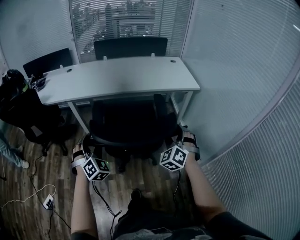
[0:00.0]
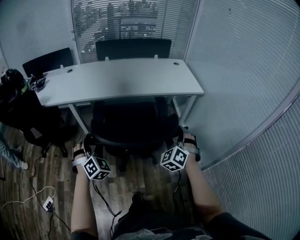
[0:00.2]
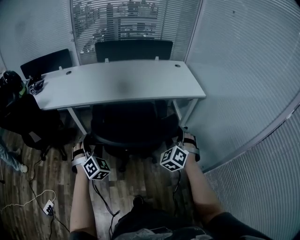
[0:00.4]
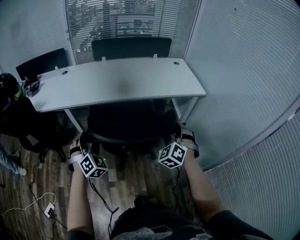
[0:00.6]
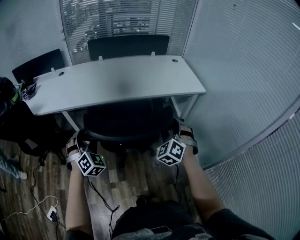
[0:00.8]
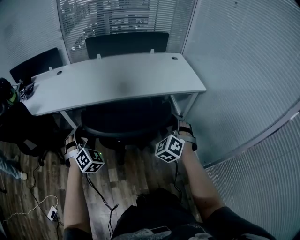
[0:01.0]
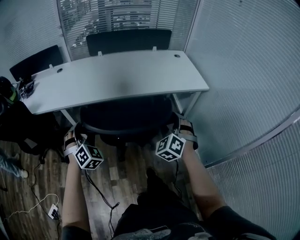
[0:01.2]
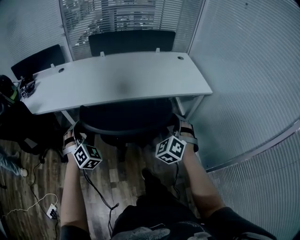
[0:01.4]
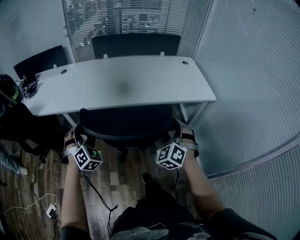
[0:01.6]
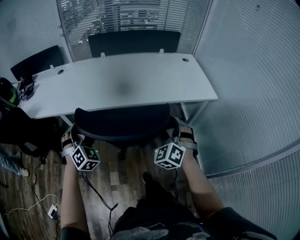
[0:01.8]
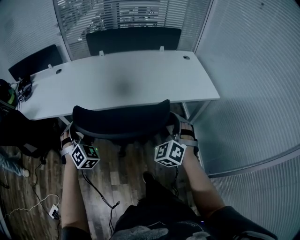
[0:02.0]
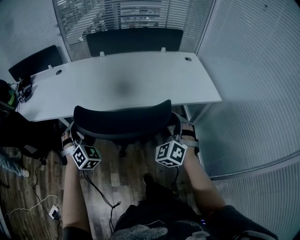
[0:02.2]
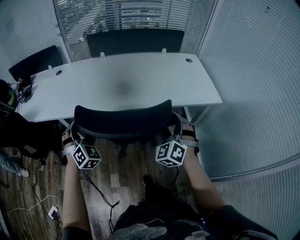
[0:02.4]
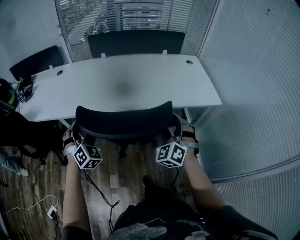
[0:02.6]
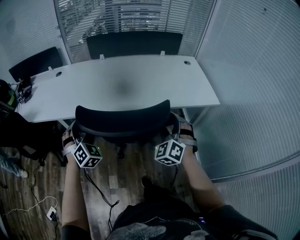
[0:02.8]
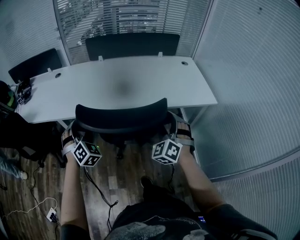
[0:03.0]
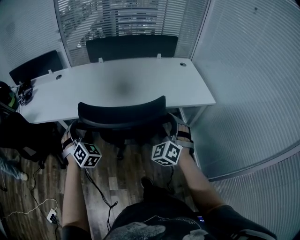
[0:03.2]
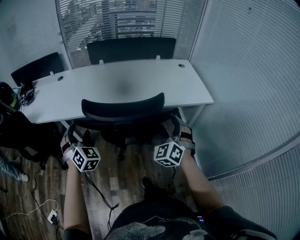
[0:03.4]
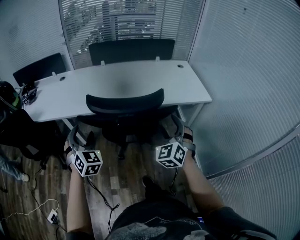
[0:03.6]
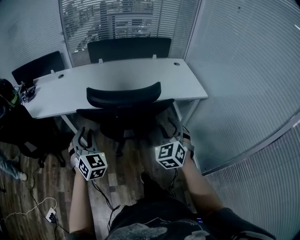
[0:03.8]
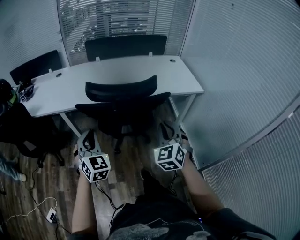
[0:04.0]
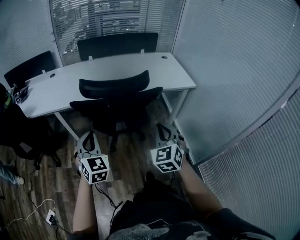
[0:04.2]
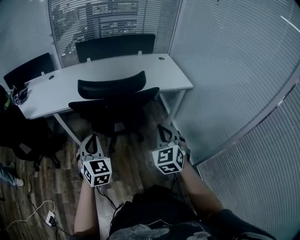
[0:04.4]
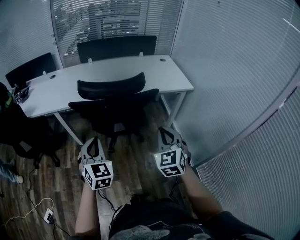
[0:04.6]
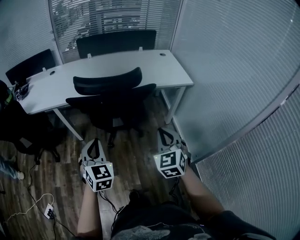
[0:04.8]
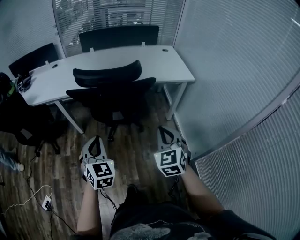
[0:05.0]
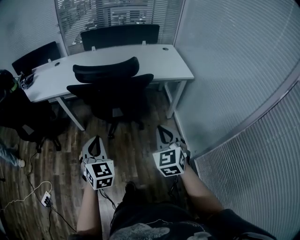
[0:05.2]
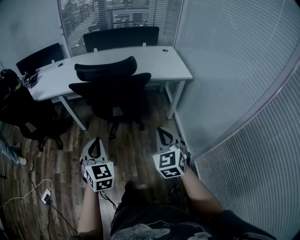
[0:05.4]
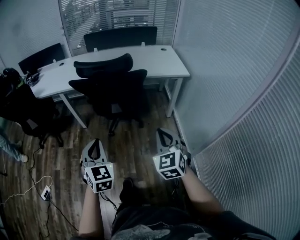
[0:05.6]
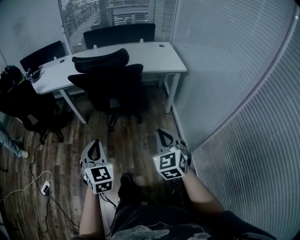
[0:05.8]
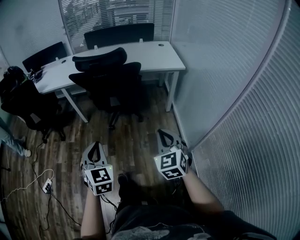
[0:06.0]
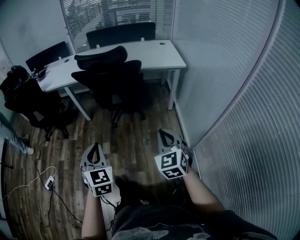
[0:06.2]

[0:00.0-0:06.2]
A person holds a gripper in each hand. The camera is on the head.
0.0 to 1.6 s: The two grippers go some 25 cm forward.
1.6 to 3.2 s: The two grippers go approximately 5 cm forward.
3.2 to 4.6 s: The right gripper goes about 25 cm backward, turns by some 30 degrees, and closes its fingers. Meanwhile the left gripper shifts approximately 25 cm backward and to the right, rotates some 30 degrees, and closes.
4.6 to 6.2 s: The left gripper is displaced backward by approximately 30 cm. Meanwhile the right gripper is displaced backward and to the right by about 30 cm.

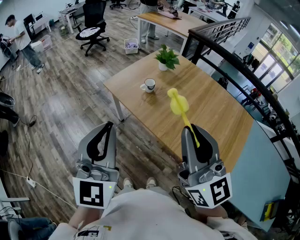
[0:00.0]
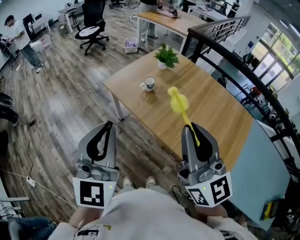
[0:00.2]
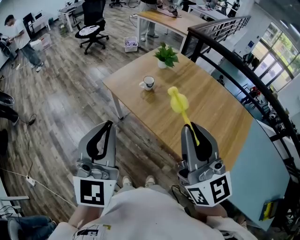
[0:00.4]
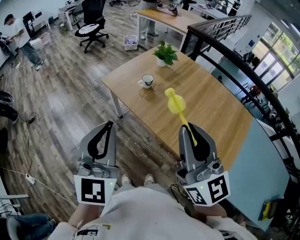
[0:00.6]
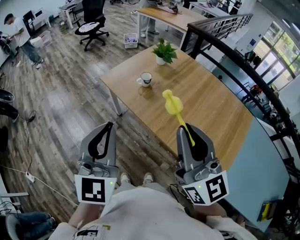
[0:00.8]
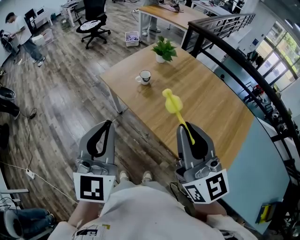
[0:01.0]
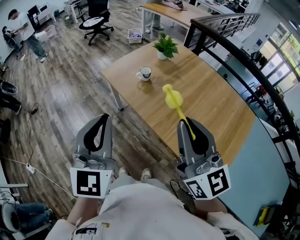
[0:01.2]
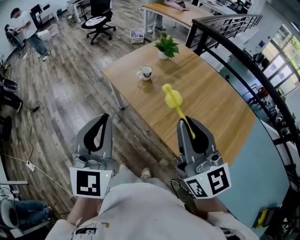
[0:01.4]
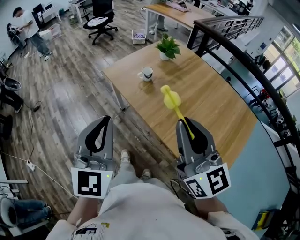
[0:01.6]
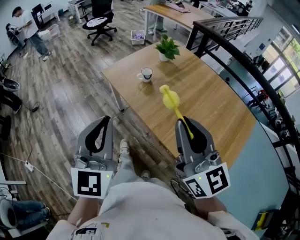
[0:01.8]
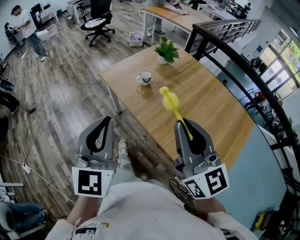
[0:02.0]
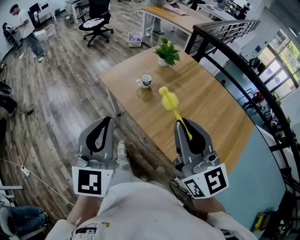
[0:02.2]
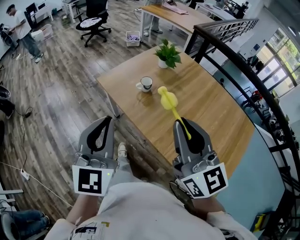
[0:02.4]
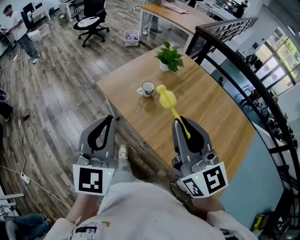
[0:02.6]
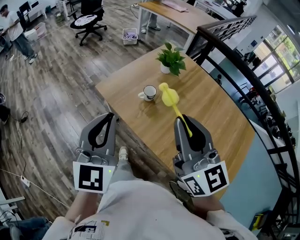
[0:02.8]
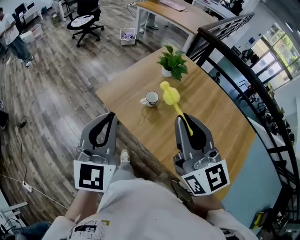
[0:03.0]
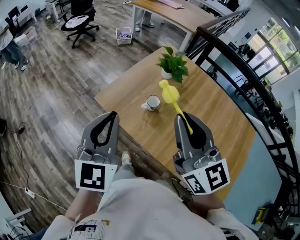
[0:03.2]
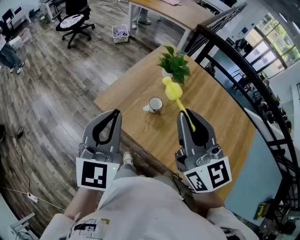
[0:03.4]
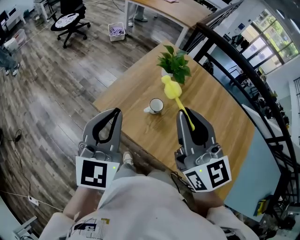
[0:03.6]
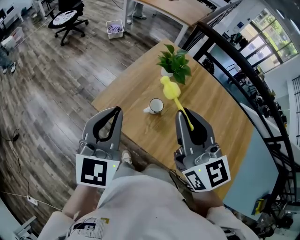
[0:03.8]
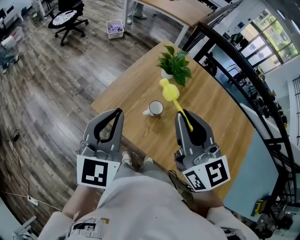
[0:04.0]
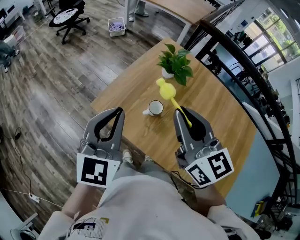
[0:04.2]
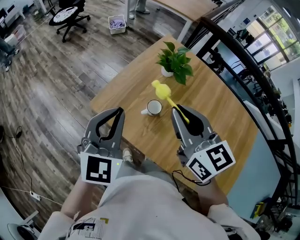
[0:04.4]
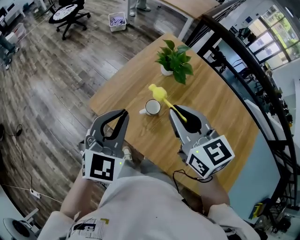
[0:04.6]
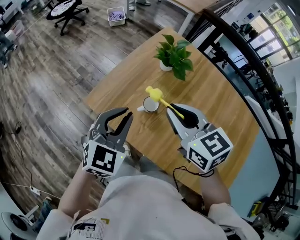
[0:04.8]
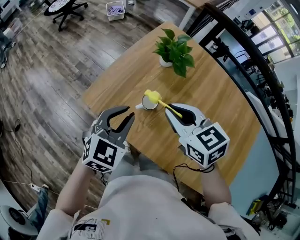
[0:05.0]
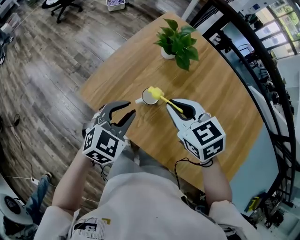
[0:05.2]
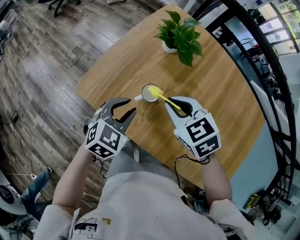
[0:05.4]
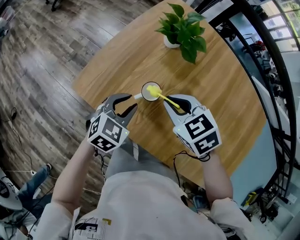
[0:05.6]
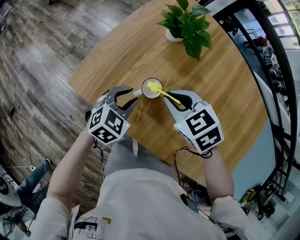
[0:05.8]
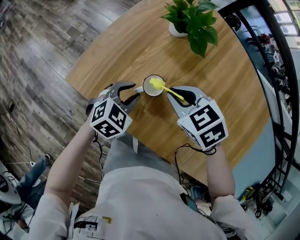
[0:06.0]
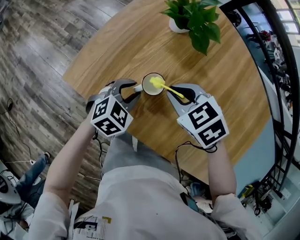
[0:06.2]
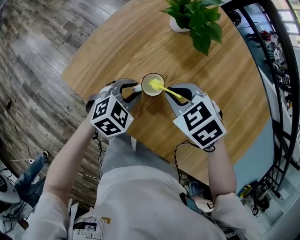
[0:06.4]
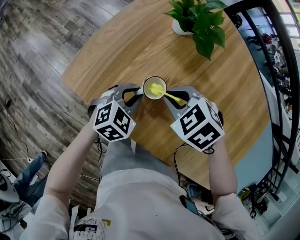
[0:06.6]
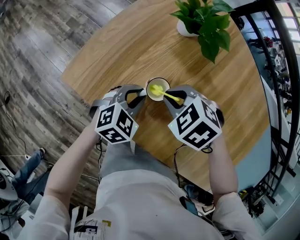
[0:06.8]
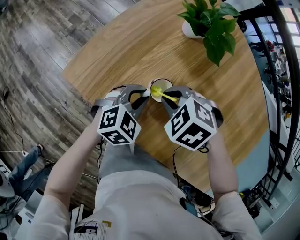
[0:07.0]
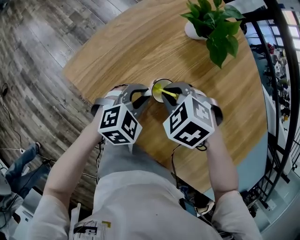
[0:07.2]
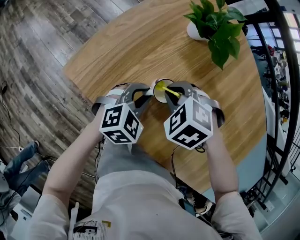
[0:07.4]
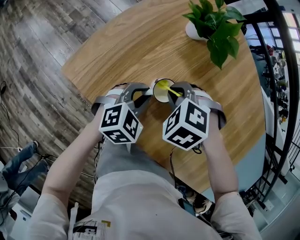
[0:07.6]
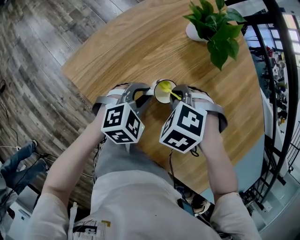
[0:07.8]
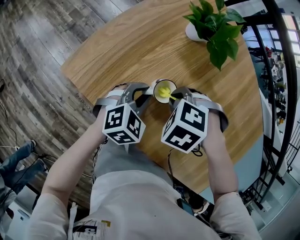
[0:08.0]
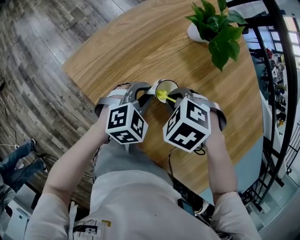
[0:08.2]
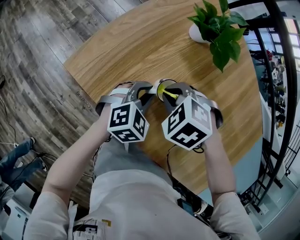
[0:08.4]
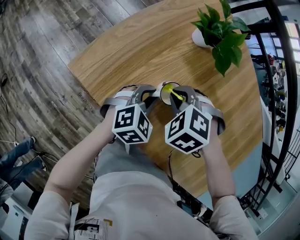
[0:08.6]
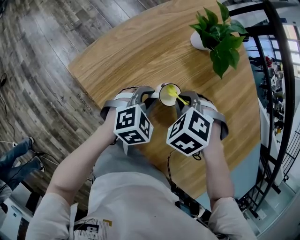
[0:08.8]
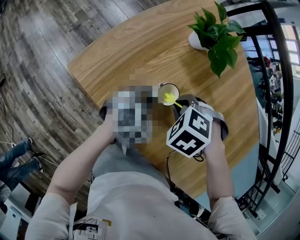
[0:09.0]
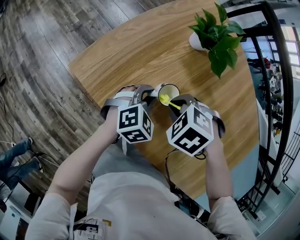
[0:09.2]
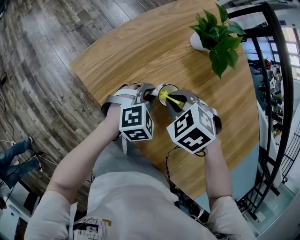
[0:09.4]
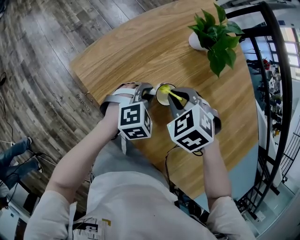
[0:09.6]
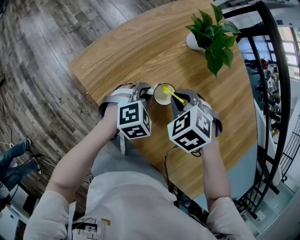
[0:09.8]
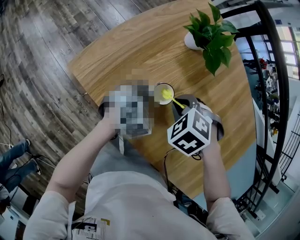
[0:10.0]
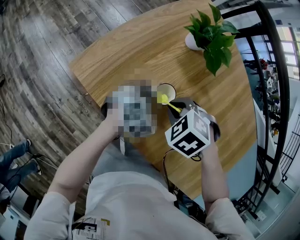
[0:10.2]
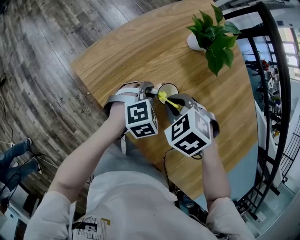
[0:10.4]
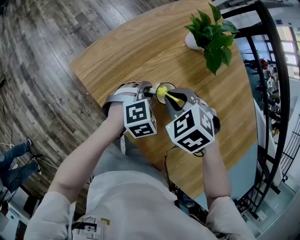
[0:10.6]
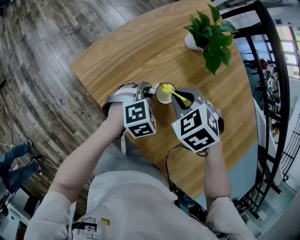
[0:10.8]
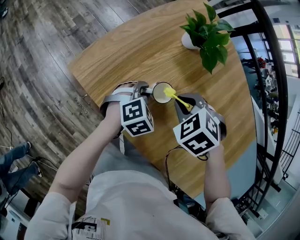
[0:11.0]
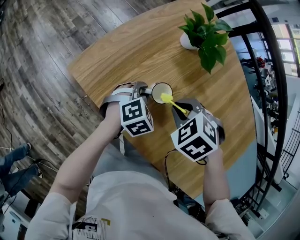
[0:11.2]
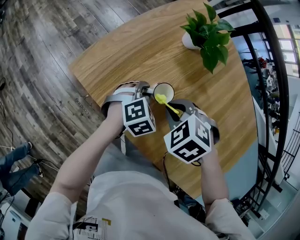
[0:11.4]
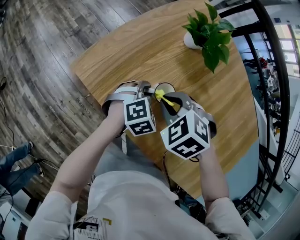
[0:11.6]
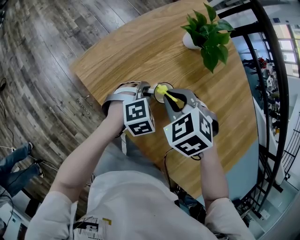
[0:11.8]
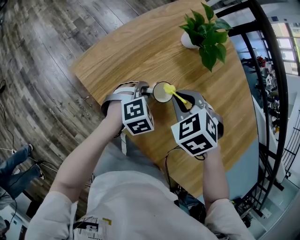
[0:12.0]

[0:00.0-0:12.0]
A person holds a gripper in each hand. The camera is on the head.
0.0 to 1.6 s: The right gripper shifts about 10 cm to the right and downward; the left gripper goes approximately 5 cm to the right.
1.6 to 3.0 s: The two grippers go roughly 30 cm forward.
3.0 to 4.4 s: Both grippers move forward, some 20 cm.
4.4 to 6.0 s: Both grippers move downward, some 35 cm. The left gripper tips its fingers downward by some 40 degrees, and opens its fingers. The right gripper angles its fingers downward, by about 40 degrees.
6.0 to 7.6 s: The right gripper goes some 10 cm downward, and changes its angle by some 40 degrees.
7.6 to 10.4 s: The grippers make only small movements.
10.4 to 12.0 s: The grippers move only a little.

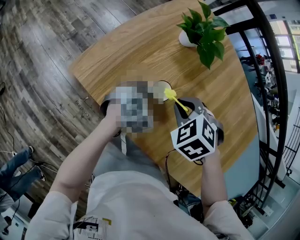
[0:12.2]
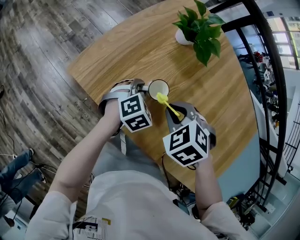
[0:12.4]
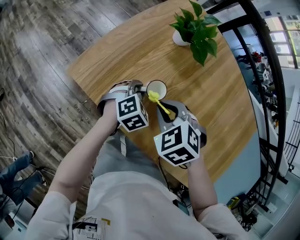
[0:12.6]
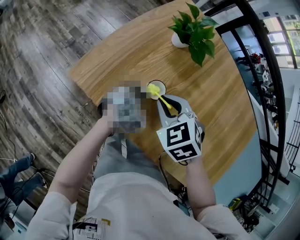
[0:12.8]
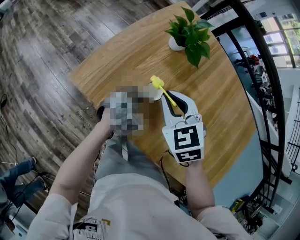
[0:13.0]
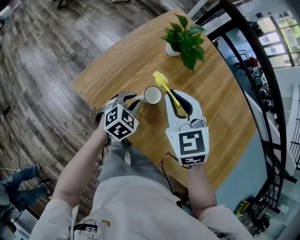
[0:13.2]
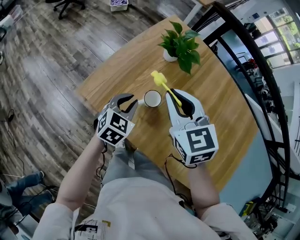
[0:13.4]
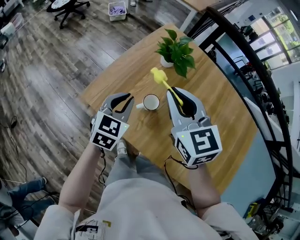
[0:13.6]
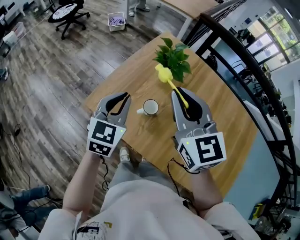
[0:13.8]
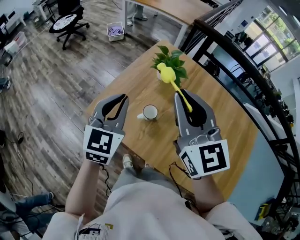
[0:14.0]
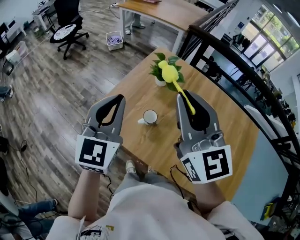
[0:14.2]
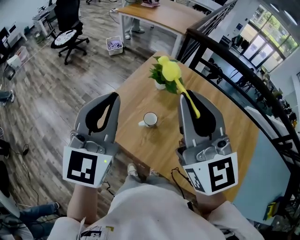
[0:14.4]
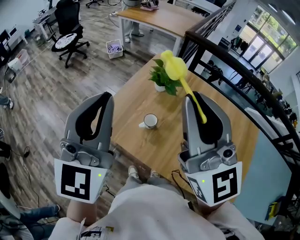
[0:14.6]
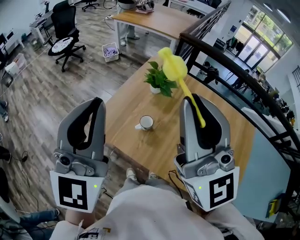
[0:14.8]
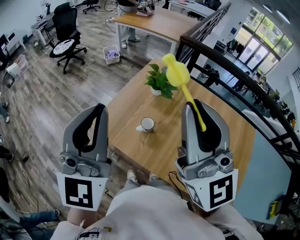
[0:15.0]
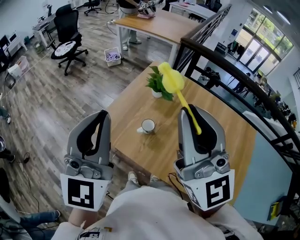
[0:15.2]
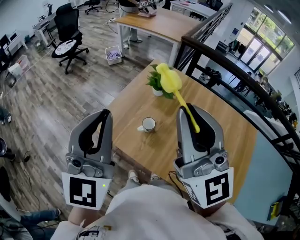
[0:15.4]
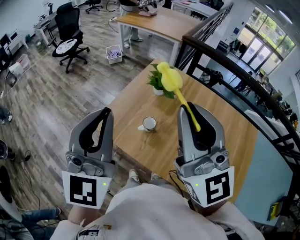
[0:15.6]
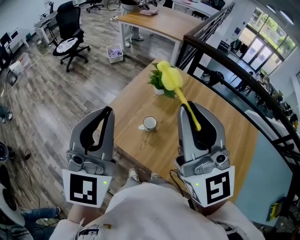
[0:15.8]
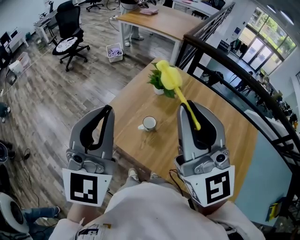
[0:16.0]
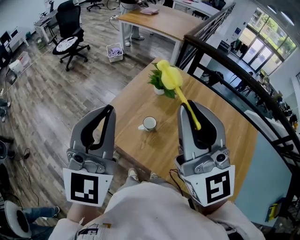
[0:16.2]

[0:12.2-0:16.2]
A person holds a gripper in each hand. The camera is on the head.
12.2 to 13.6 s: Both grippers travel together upward, approximately 25 cm. The right gripper angles its fingers upward, by some 50 degrees; the left gripper rotates roughly 30 degrees.
13.6 to 14.8 s: The left gripper moves upward, roughly 40 cm, and points its fingers roughly 40 degrees further upward. The right gripper moves upward and backward, about 30 cm, and angles its fingers upward, by roughly 40 degrees.
14.8 to 16.2 s: The grippers stay close to where they were, moving slightly.

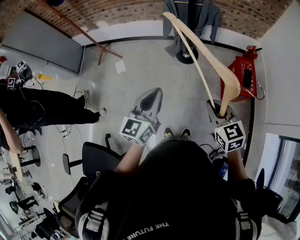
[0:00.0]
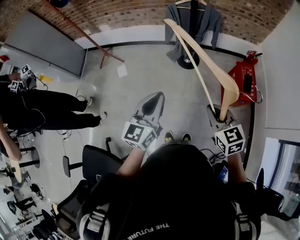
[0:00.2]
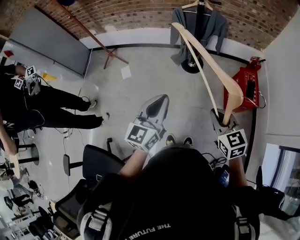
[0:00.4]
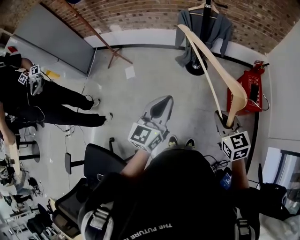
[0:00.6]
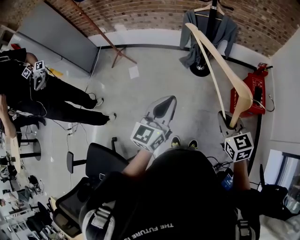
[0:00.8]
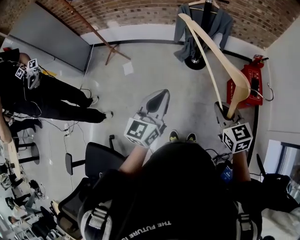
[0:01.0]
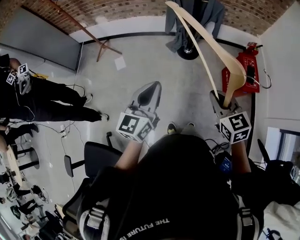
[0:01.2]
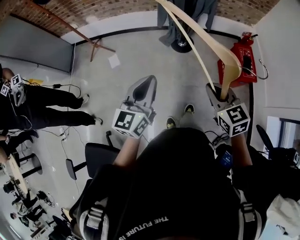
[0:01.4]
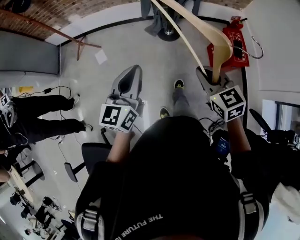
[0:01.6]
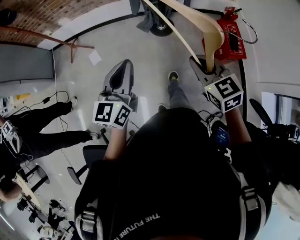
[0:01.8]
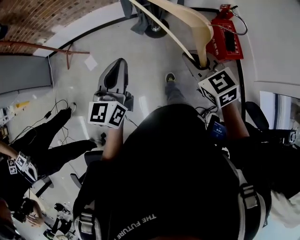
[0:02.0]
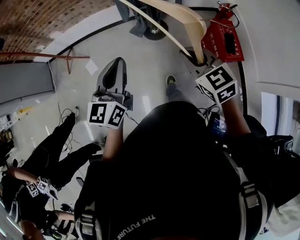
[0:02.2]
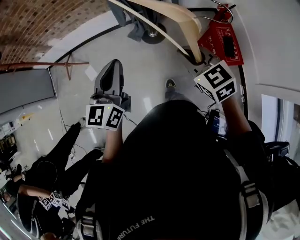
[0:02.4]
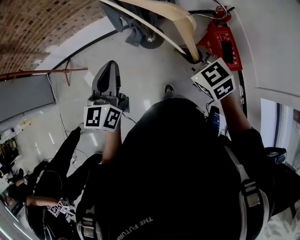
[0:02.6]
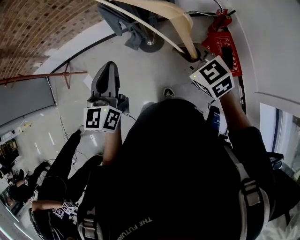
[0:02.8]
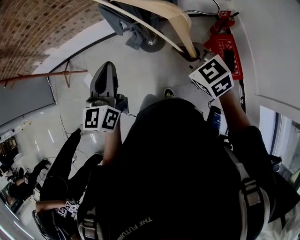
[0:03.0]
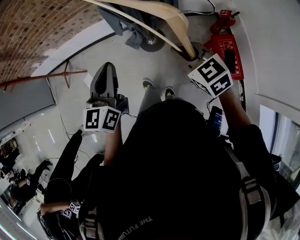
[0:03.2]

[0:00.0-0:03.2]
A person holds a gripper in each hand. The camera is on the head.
0.0 to 1.6 s: Both grippers move to the left, approximately 5 cm.
1.6 to 3.2 s: The left gripper moves forward and to the right, some 40 cm. The right gripper shifts approximately 35 cm forward.
